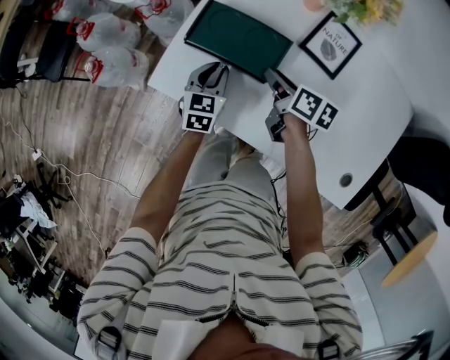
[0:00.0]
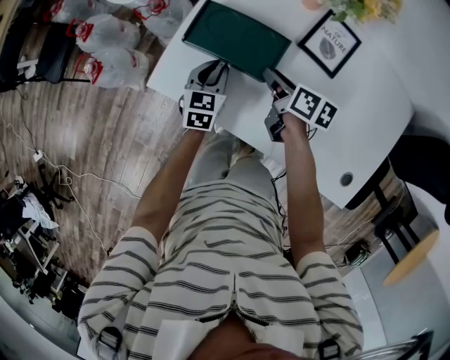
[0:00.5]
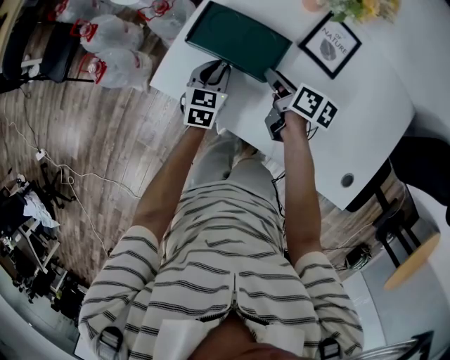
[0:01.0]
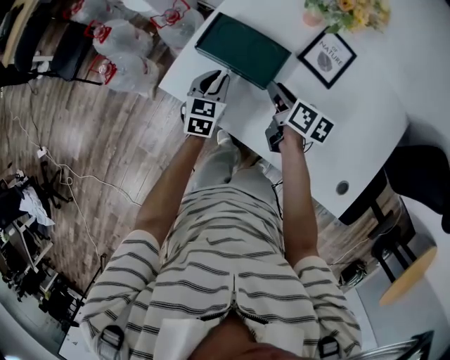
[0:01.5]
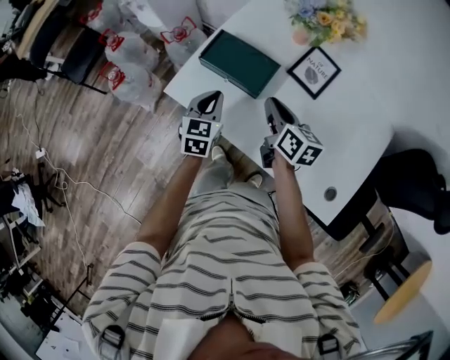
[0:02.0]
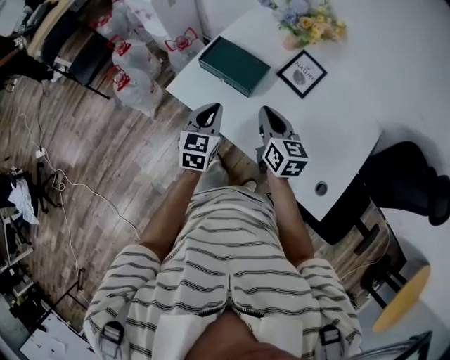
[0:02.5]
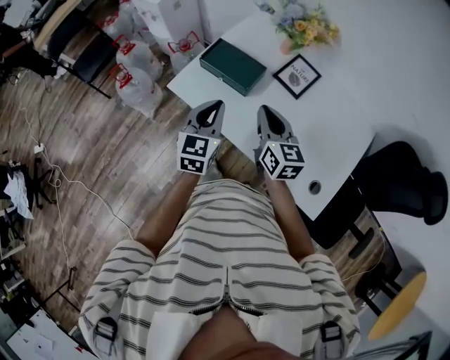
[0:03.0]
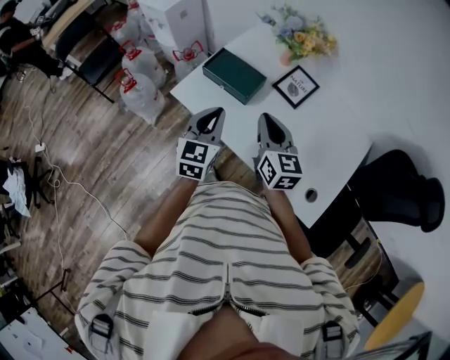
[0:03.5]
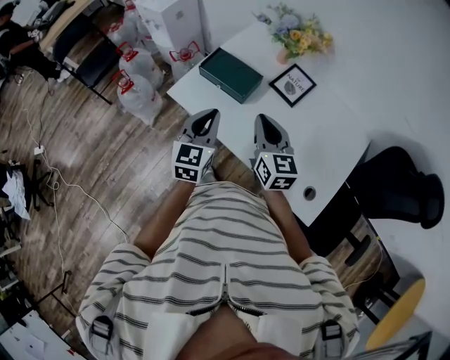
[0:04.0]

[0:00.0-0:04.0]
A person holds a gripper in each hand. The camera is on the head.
0.0 to 2.0 s: Both grippers move upward and backward, some 15 cm. The right gripper turns by approximately 20 degrees, and closes its fingers.
2.0 to 4.0 s: Both grippers travel together upward and backward, some 20 cm. The right gripper rotates roughly 30 degrees.

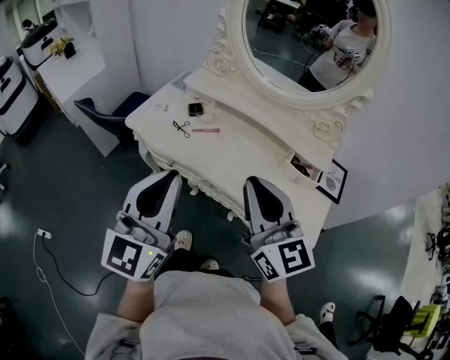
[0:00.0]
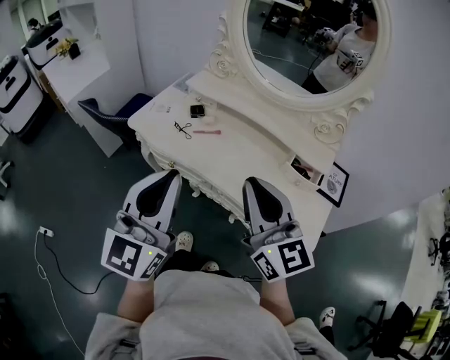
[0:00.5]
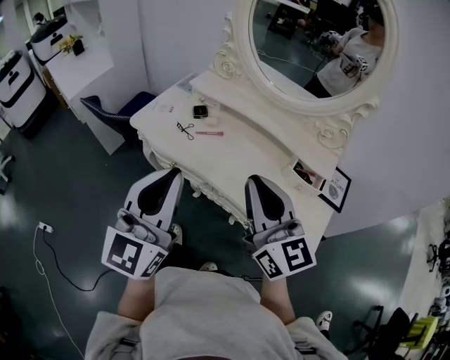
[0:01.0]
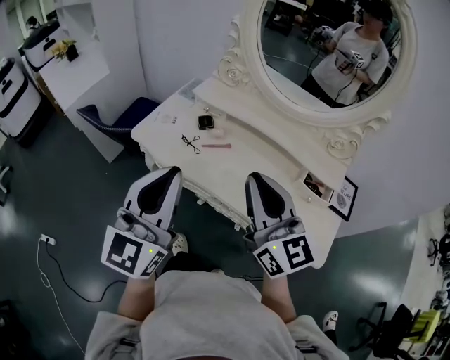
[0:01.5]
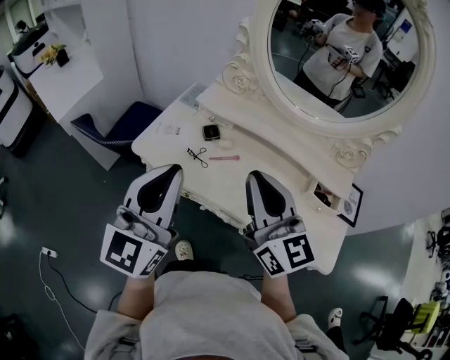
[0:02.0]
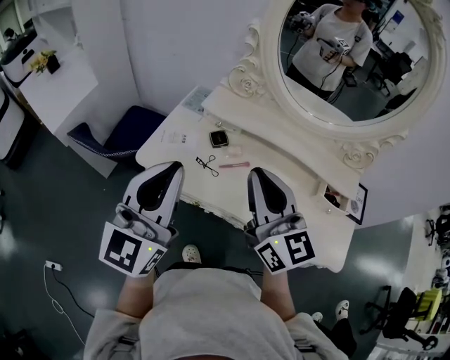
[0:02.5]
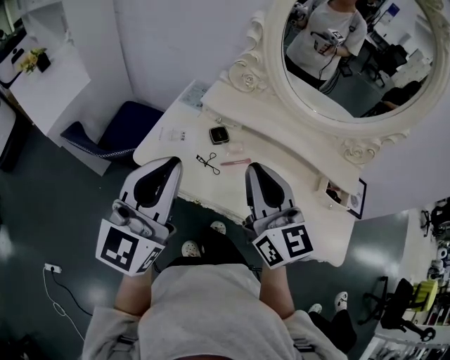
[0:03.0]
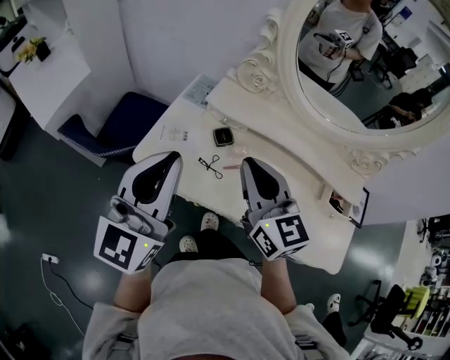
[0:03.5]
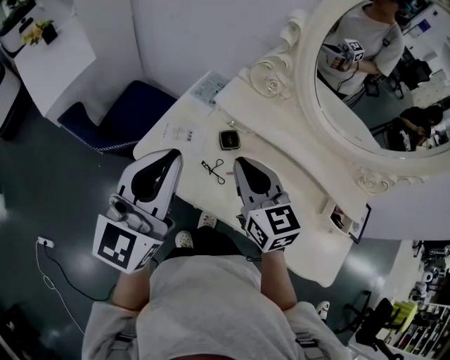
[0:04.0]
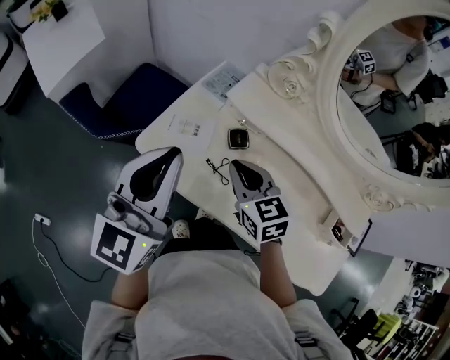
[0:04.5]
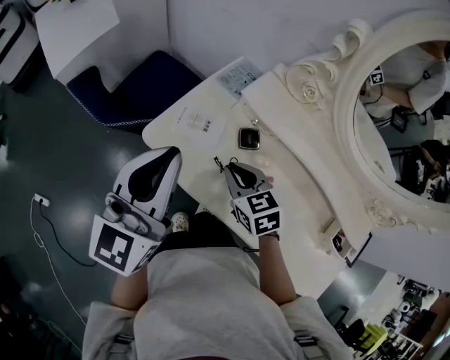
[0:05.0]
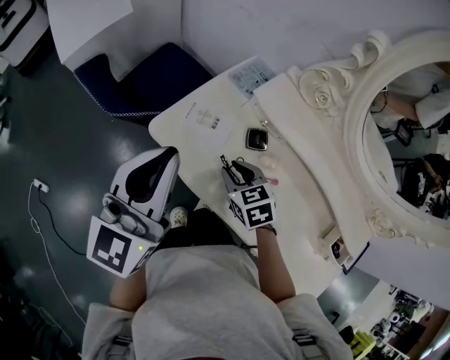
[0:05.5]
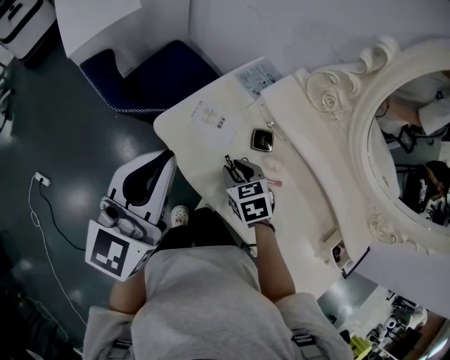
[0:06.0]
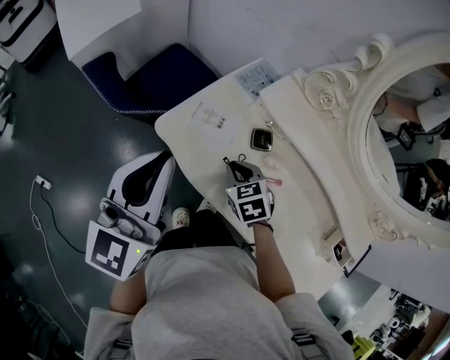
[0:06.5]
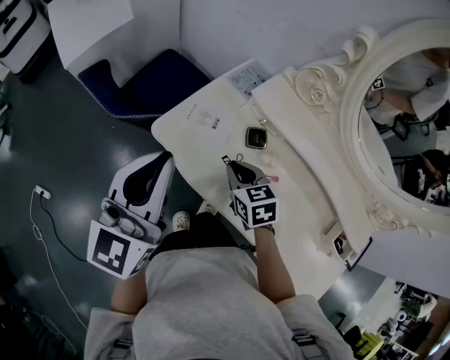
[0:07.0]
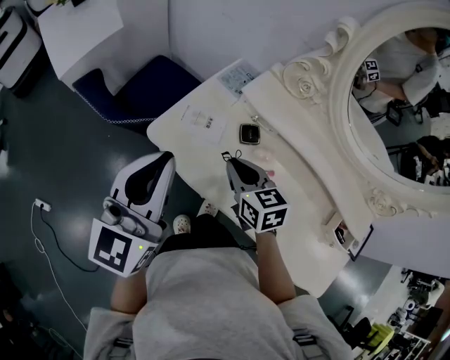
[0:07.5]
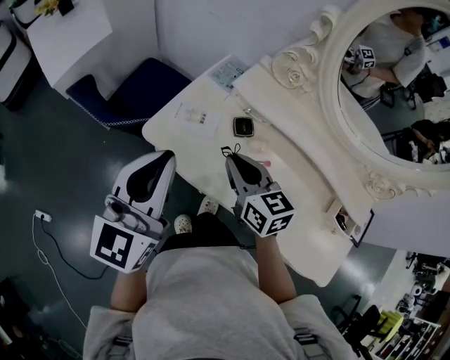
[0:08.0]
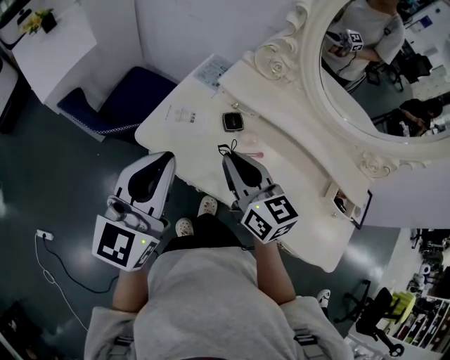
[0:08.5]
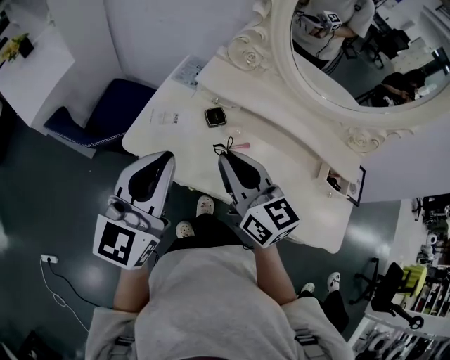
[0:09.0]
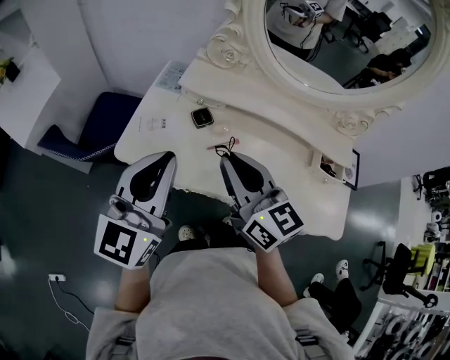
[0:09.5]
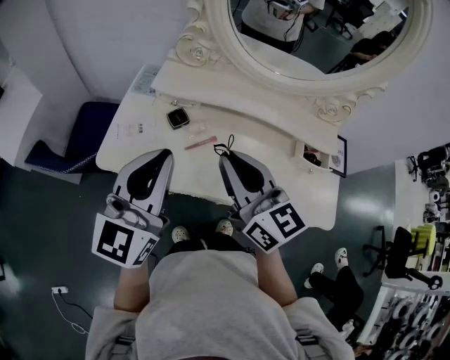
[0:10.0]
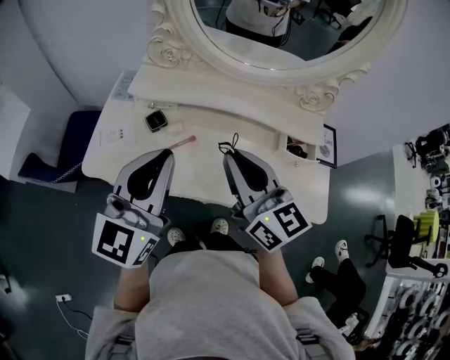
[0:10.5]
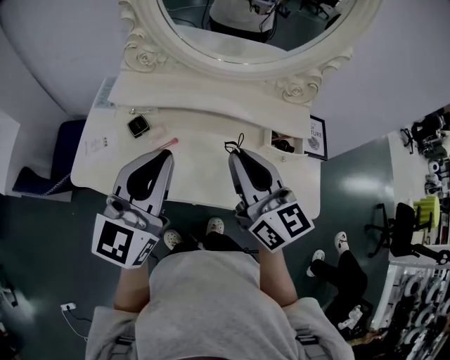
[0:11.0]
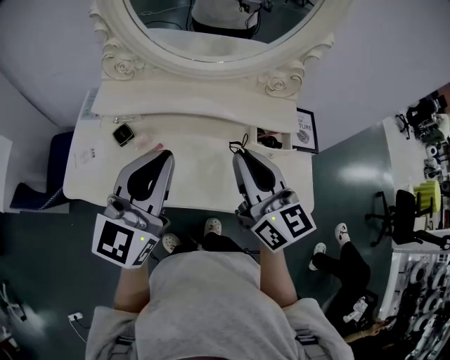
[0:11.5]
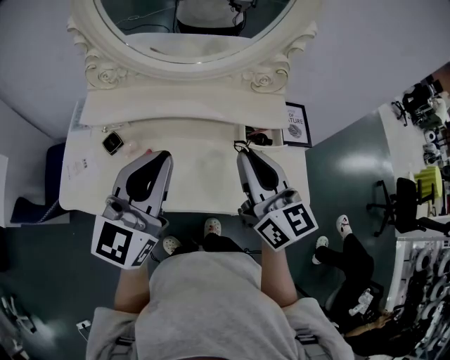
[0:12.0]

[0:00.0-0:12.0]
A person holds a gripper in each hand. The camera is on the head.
0.0 to 2.0 s: Both grippers travel together forward and to the left, about 15 cm.
2.0 to 4.0 s: The right gripper goes about 25 cm forward, downward and to the left, and turns by roughly 20 degrees. Meanwhile the left gripper is displaced forward and to the left by about 15 cm.
4.0 to 6.0 s: The right gripper travels downward by about 20 cm, points its fingers roughly 40 degrees further downward, and opens up. Meanwhile the left gripper heads to the left, covering roughly 5 cm.
6.0 to 8.0 s: The right gripper shifts about 15 cm upward, and angles its fingers upward, by some 30 degrees.
8.0 to 10.0 s: The left gripper goes about 10 cm to the right, and turns by approximately 20 degrees; the right gripper heads upward, to the right and backward, covering approximately 20 cm, and rotates about 30 degrees.
10.0 to 12.0 s: The two grippers go approximately 25 cm to the right. The right gripper swivels about 20 degrees.

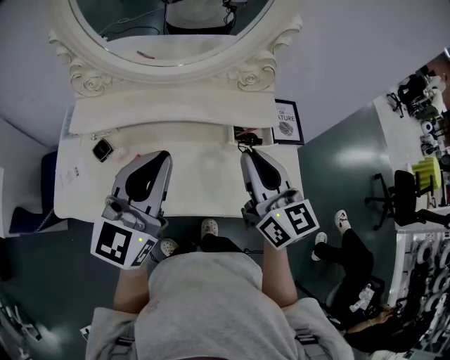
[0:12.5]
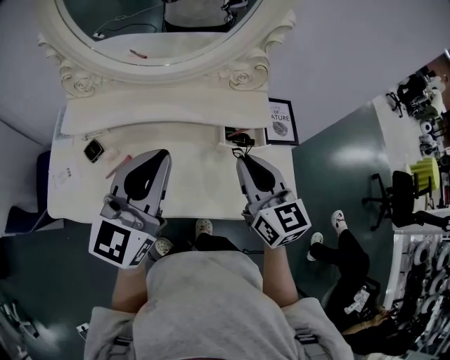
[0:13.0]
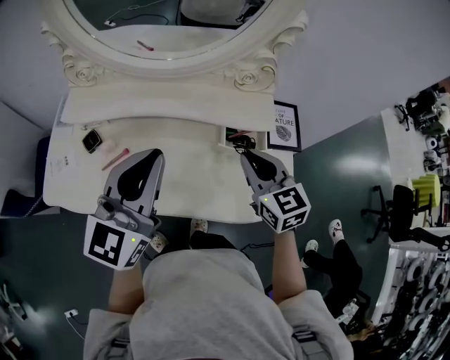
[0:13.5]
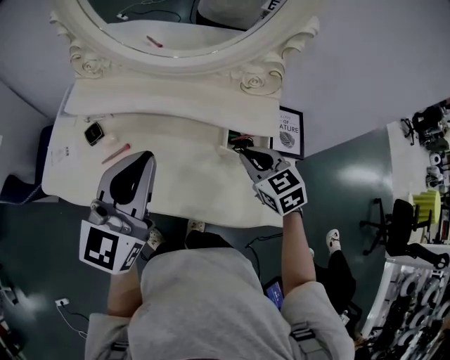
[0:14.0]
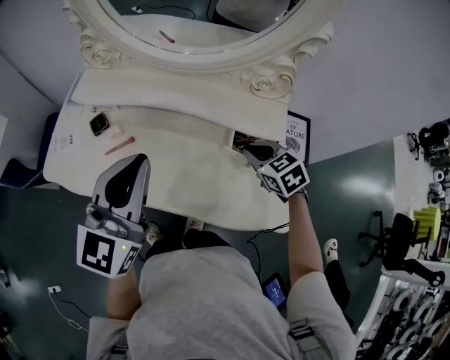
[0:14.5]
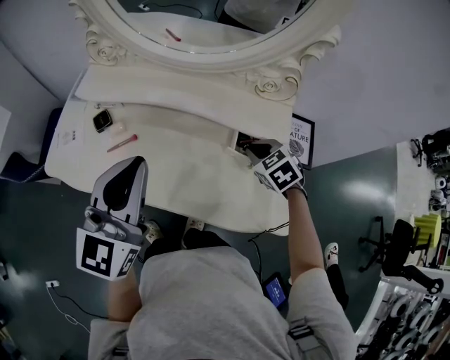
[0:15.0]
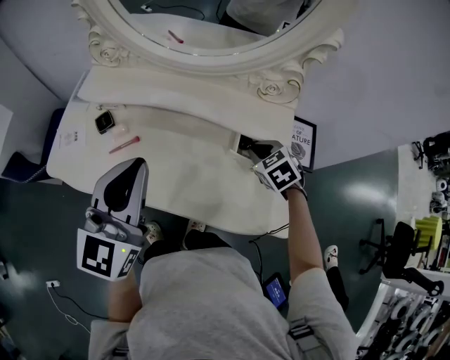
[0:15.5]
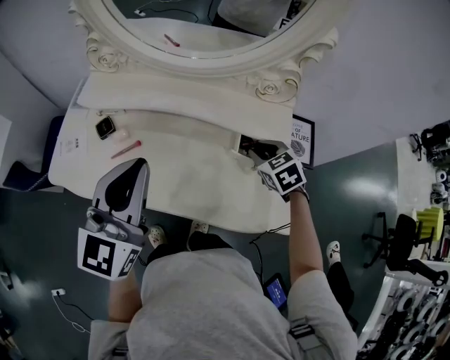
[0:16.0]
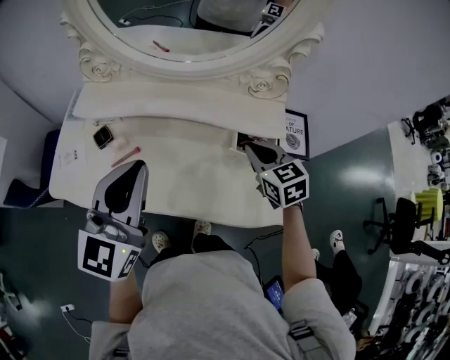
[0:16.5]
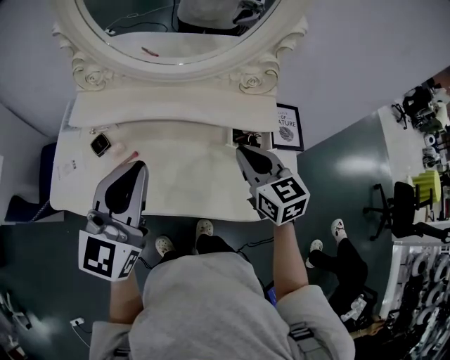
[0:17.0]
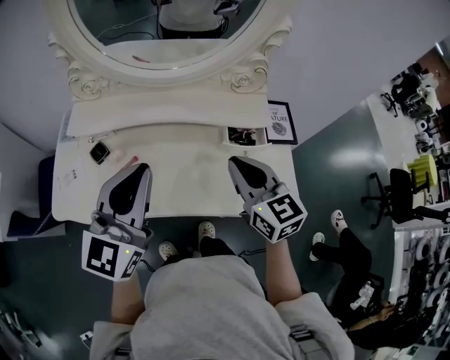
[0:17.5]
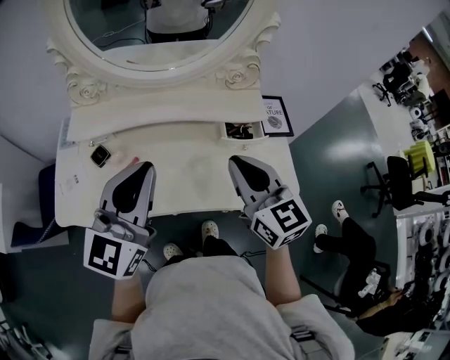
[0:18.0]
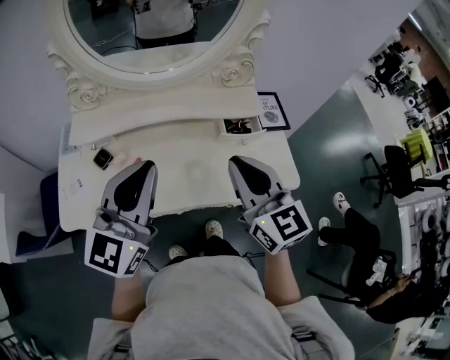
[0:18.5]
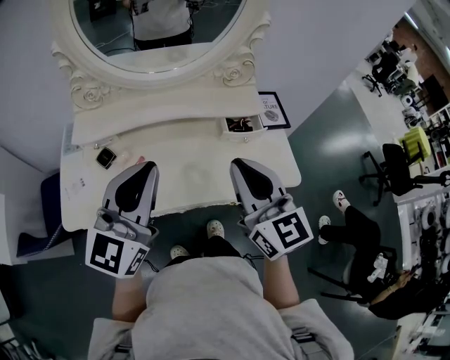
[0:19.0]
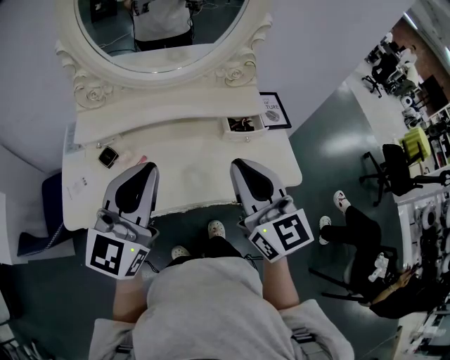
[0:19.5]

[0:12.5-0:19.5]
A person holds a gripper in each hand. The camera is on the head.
12.5 to 14.5 s: The right gripper travels downward and forward by roughly 20 cm, and tilts its fingers some 50 degrees downward.
14.5 to 16.0 s: The grippers move only a little.
16.0 to 17.5 s: The right gripper goes some 20 cm upward, backward and to the left, and tips its fingers upward by about 40 degrees.
17.5 to 19.5 s: The left gripper is displaced backward by some 5 cm. The right gripper heads backward and upward, covering roughly 15 cm.

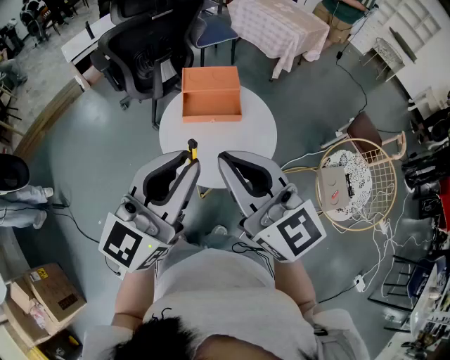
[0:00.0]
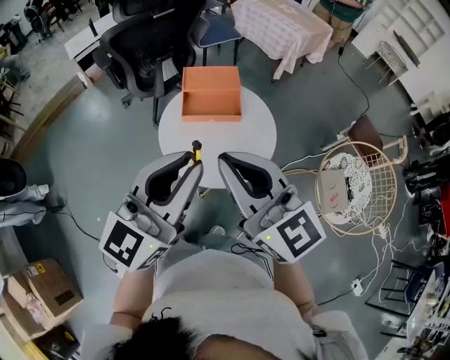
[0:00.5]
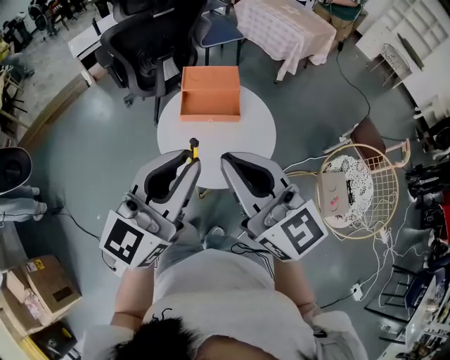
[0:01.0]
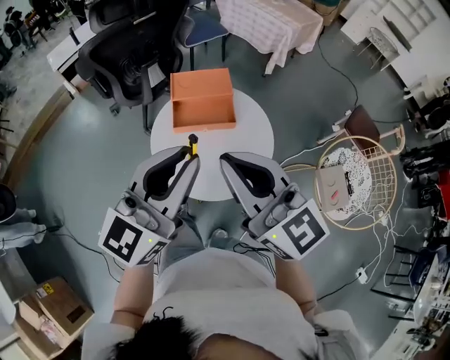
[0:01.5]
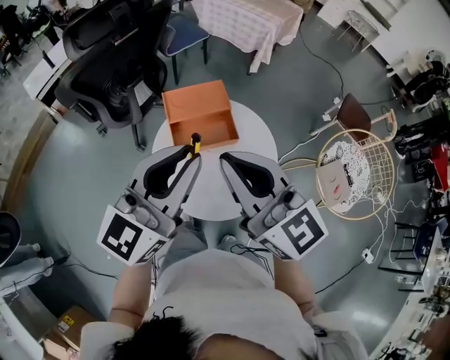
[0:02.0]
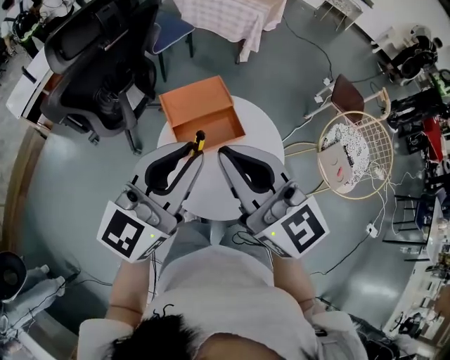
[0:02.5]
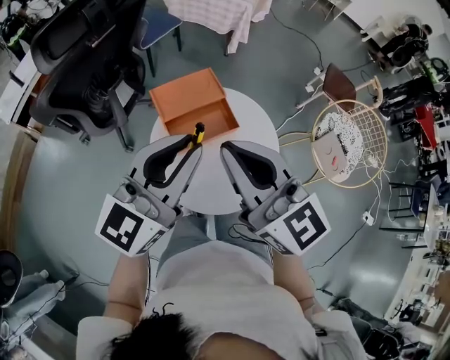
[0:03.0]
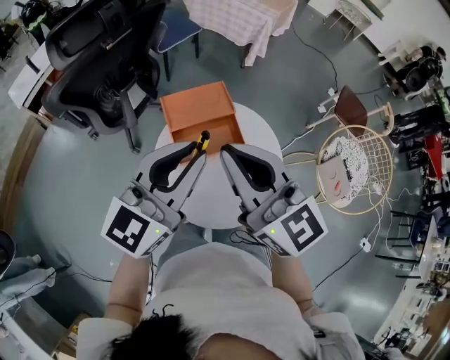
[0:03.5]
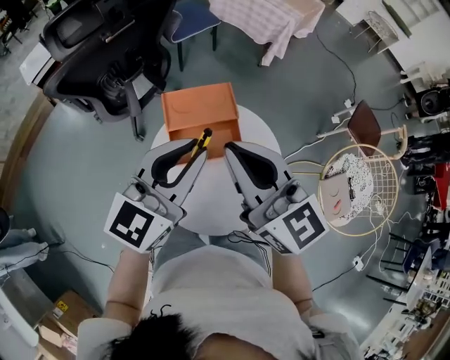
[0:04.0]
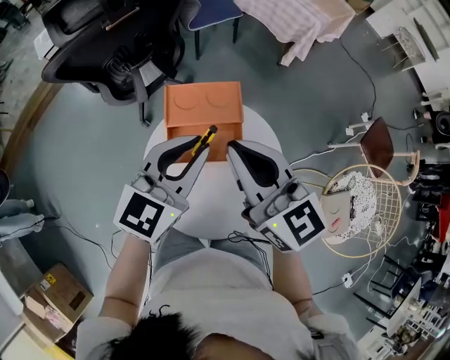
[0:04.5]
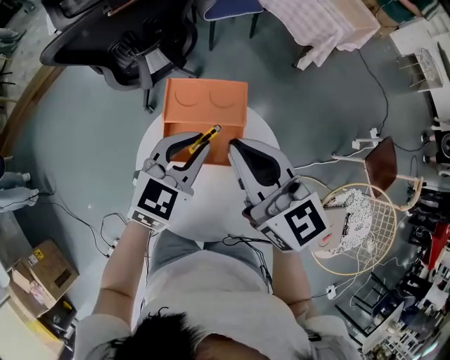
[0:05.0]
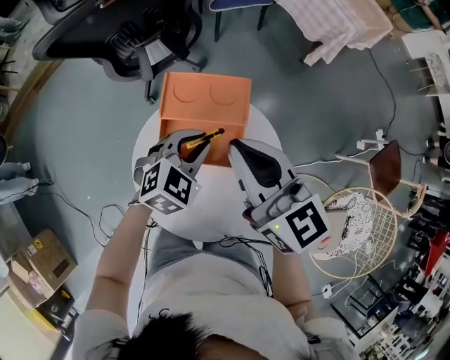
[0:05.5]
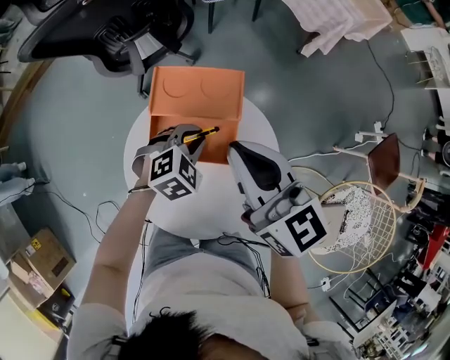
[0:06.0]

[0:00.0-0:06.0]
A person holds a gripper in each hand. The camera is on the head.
0.0 to 2.0 s: Both grippers move forward, some 15 cm.
2.0 to 4.0 s: The left gripper goes about 10 cm forward and downward, while the right gripper travels forward by approximately 10 cm.
4.0 to 6.0 s: The right gripper shifts roughly 15 cm downward, forward and to the right. The left gripper is displaced downward by roughly 30 cm, and tips its fingers downward by about 50 degrees.
